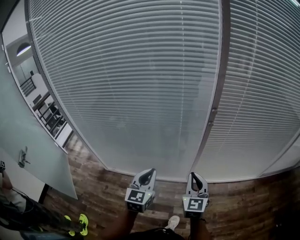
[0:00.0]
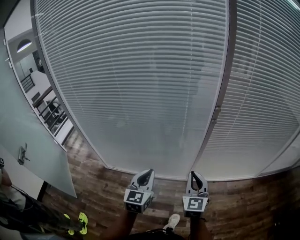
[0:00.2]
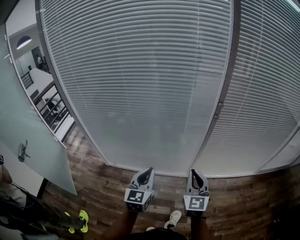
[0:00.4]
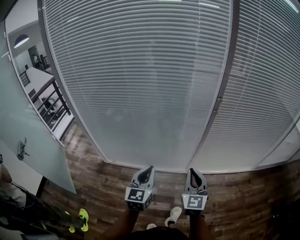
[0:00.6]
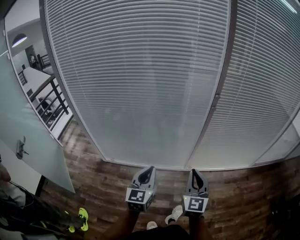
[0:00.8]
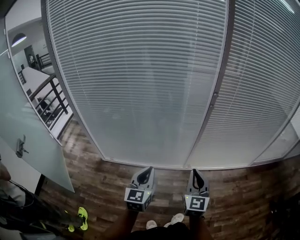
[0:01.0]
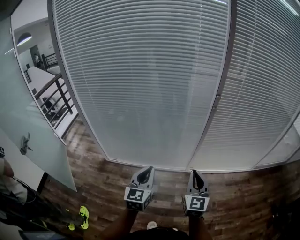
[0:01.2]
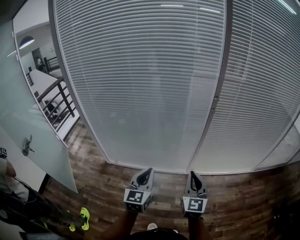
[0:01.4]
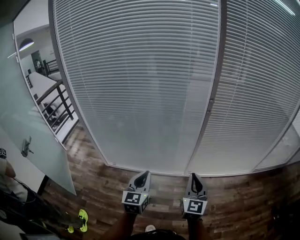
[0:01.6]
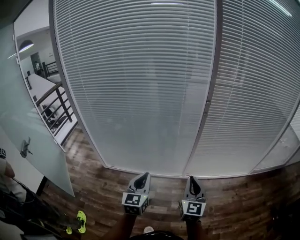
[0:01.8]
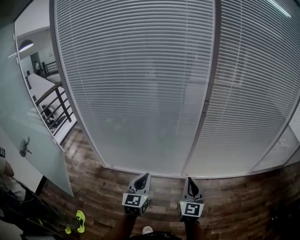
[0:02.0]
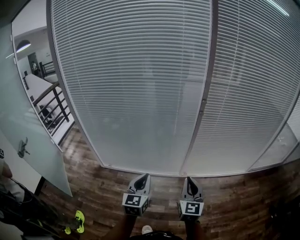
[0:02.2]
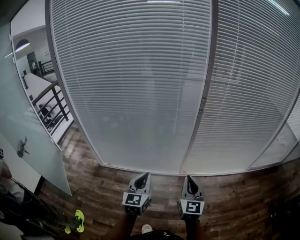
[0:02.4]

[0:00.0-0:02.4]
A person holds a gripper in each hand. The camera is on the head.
0:00.0 to 0:01.2: The left gripper travels backward and to the left by roughly 15 cm. Meanwhile the right gripper goes about 15 cm backward.
0:01.2 to 0:02.4: The right gripper changes place by roughly 5 cm. The left gripper changes place by roughly 5 cm.

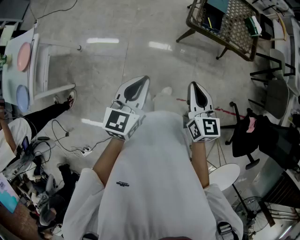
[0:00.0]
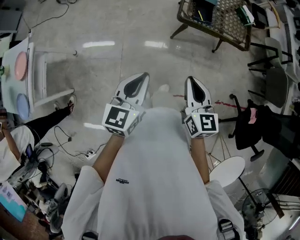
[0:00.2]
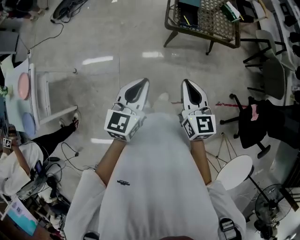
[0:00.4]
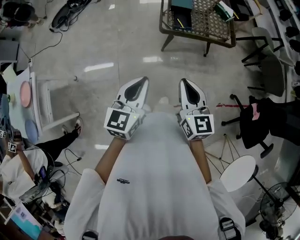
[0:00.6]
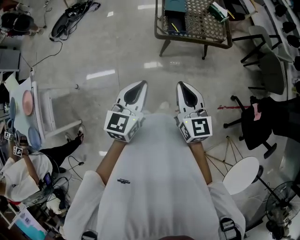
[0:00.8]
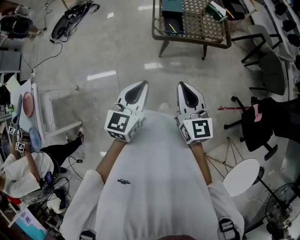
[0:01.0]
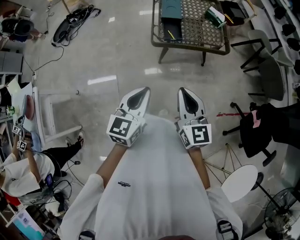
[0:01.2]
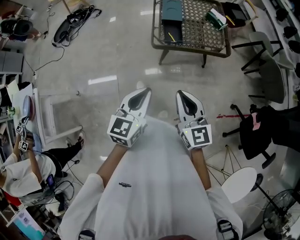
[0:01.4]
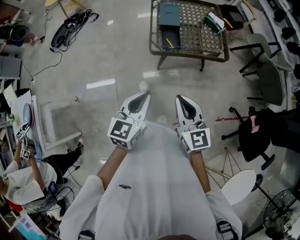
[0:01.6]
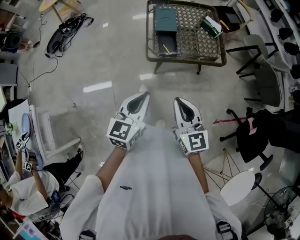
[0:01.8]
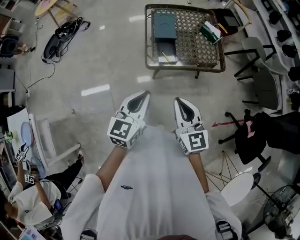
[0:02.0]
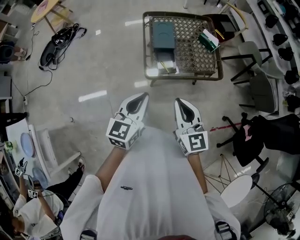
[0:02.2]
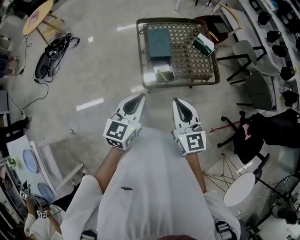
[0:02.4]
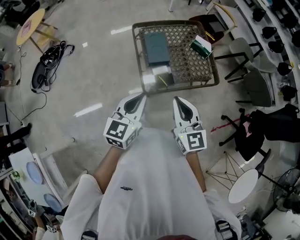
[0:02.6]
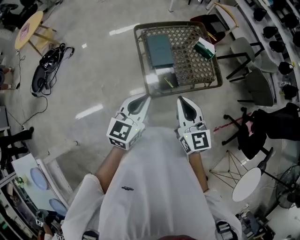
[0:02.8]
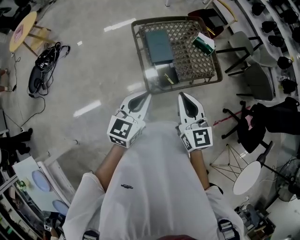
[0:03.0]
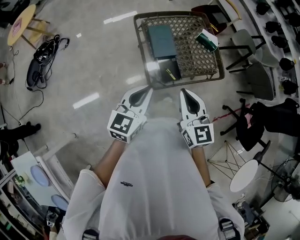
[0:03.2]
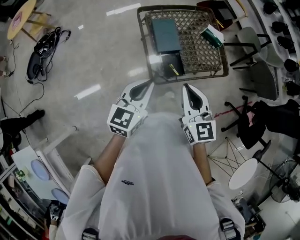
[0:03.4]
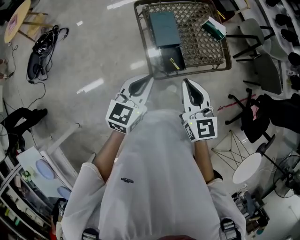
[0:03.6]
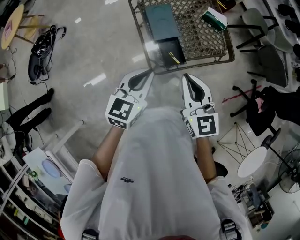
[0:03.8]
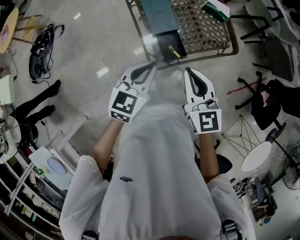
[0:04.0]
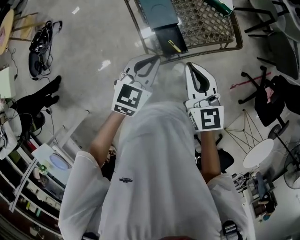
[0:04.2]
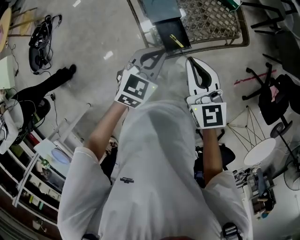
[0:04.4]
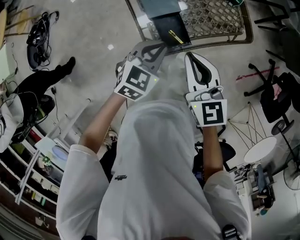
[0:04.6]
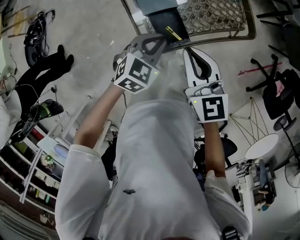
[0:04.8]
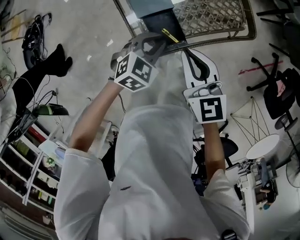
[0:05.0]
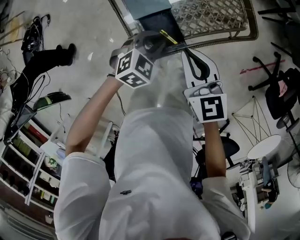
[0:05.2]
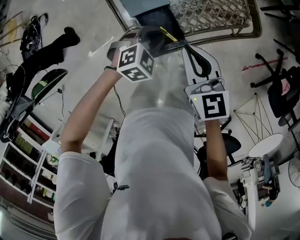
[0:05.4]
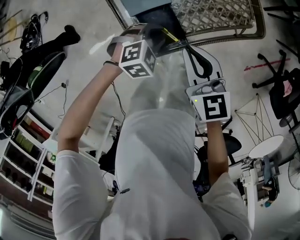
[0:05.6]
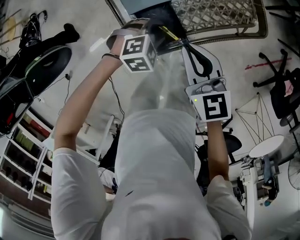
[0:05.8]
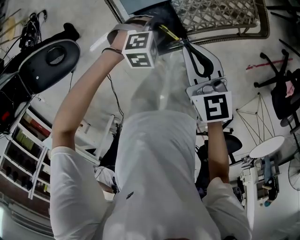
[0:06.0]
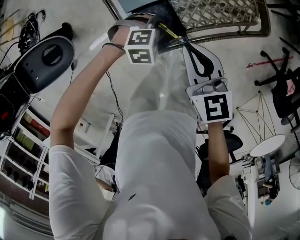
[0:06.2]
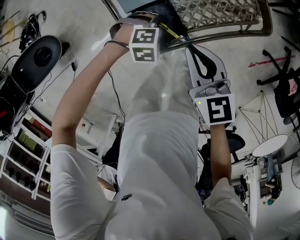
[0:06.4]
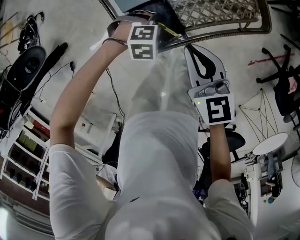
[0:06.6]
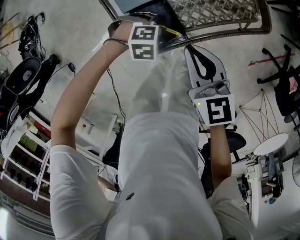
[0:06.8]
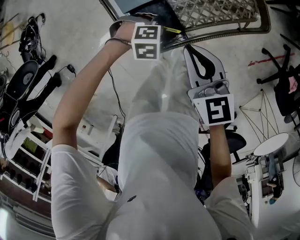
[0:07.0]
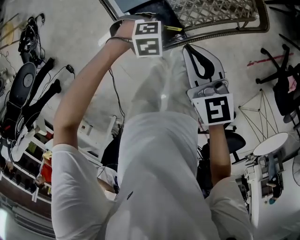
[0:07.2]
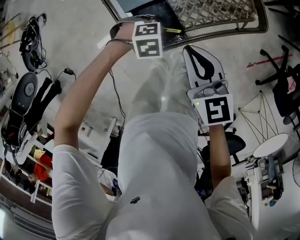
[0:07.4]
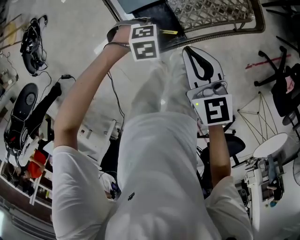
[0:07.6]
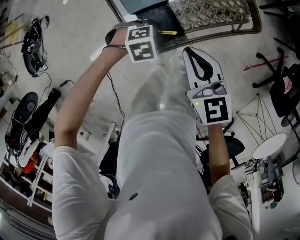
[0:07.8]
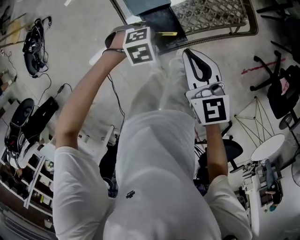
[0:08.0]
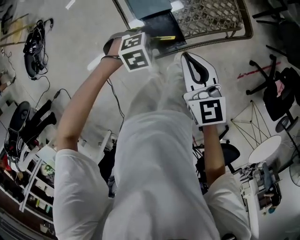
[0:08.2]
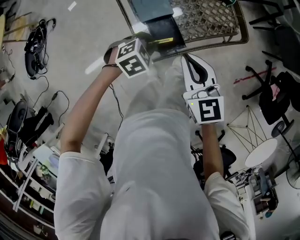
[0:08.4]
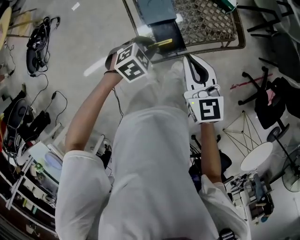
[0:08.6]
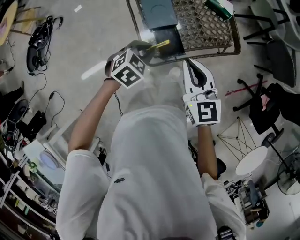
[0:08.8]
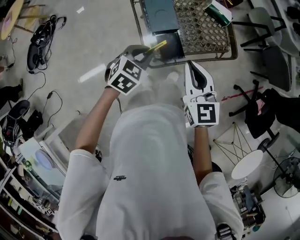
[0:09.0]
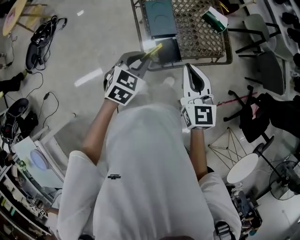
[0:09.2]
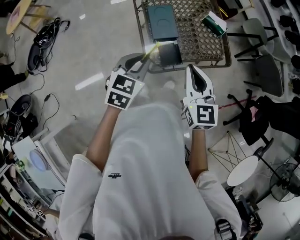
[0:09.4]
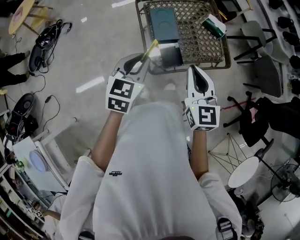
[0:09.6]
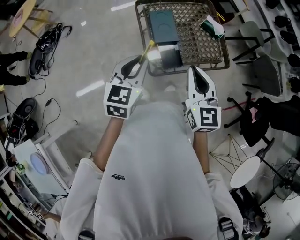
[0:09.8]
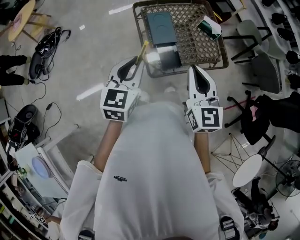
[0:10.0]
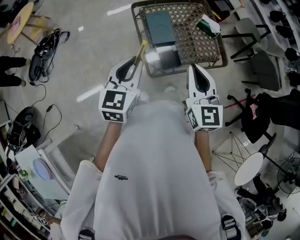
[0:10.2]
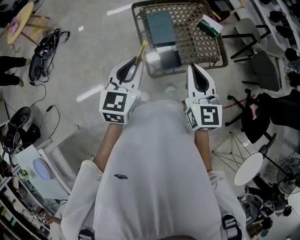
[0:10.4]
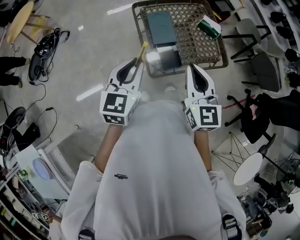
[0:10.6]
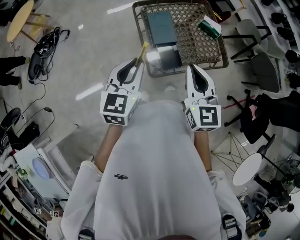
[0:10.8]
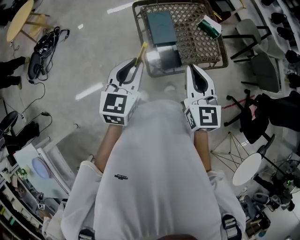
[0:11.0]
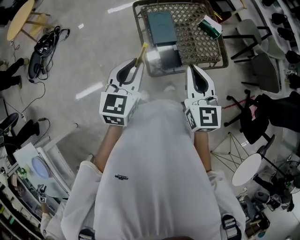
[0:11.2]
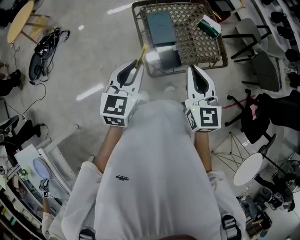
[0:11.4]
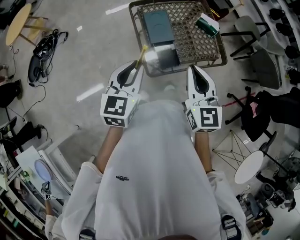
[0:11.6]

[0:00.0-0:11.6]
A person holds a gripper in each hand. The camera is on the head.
0:00.0 to 0:01.4: The left gripper travels to the right and forward by approximately 20 cm; the right gripper travels to the right, forward and upward by roughly 15 cm.
0:01.4 to 0:02.8: The grippers both shift forward by about 30 cm.
0:02.8 to 0:04.4: The left gripper travels downward, forward and to the right by roughly 20 cm, and rotates approximately 30 degrees, while the right gripper heads forward and downward, covering approximately 15 cm.
0:04.4 to 0:05.8: The right gripper shifts about 15 cm downward. The left gripper heads downward, covering about 25 cm, swivels some 50 degrees, and opens its fingers.
0:05.8 to 0:07.2: The left gripper goes roughly 5 cm downward, and closes up.
0:07.2 to 0:08.8: The two grippers go roughly 20 cm upward. The left gripper turns by about 50 degrees.
0:08.8 to 0:10.2: The right gripper is displaced upward by approximately 10 cm, while the left gripper is displaced upward by about 20 cm, and tilts its fingers about 30 degrees upward.
0:10.2 to 0:11.6: Neither gripper changes place.

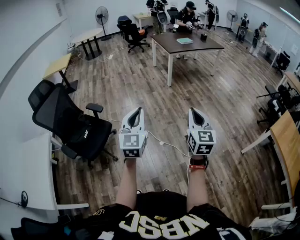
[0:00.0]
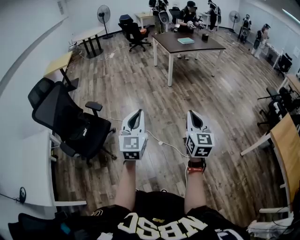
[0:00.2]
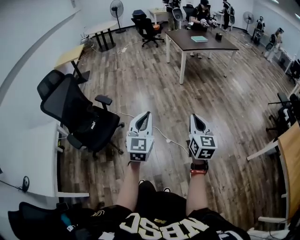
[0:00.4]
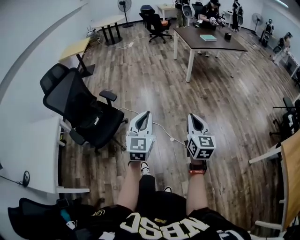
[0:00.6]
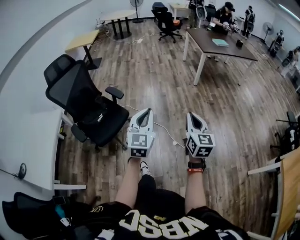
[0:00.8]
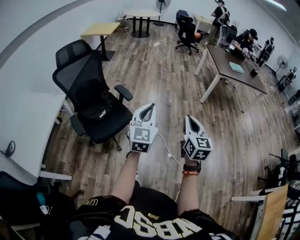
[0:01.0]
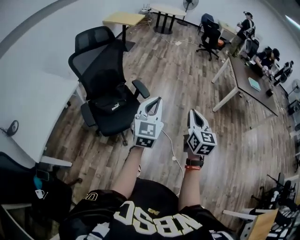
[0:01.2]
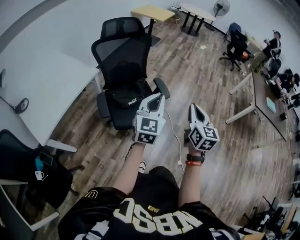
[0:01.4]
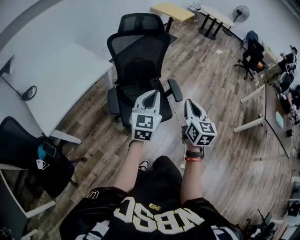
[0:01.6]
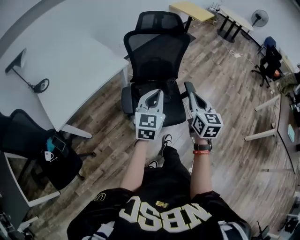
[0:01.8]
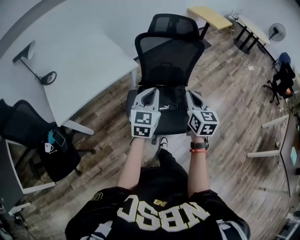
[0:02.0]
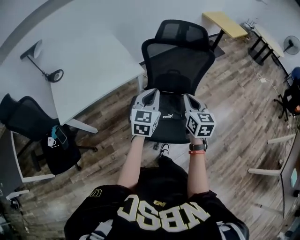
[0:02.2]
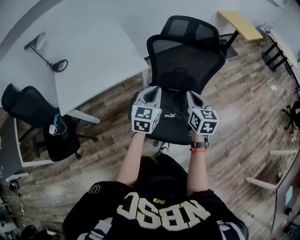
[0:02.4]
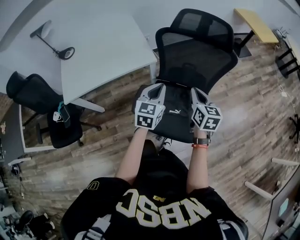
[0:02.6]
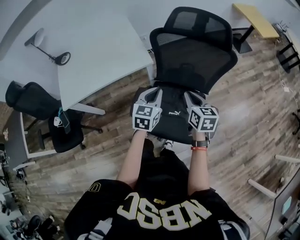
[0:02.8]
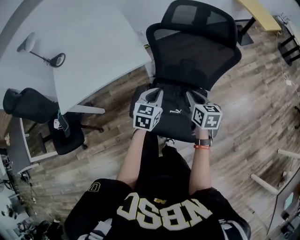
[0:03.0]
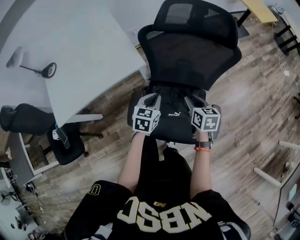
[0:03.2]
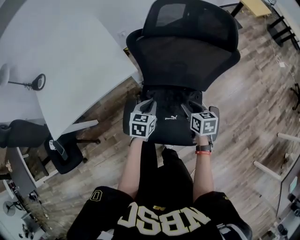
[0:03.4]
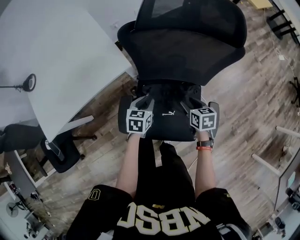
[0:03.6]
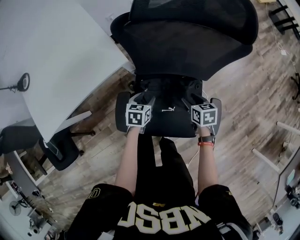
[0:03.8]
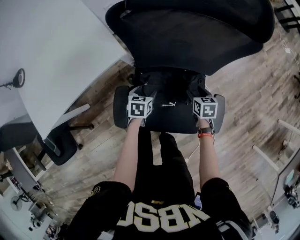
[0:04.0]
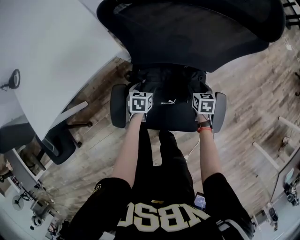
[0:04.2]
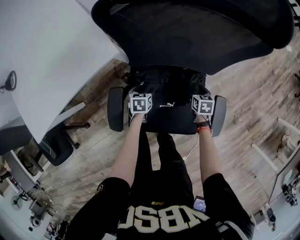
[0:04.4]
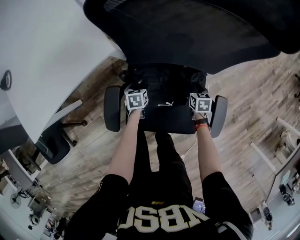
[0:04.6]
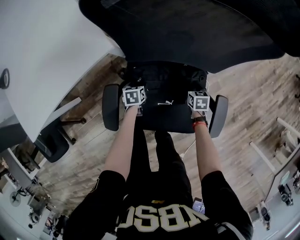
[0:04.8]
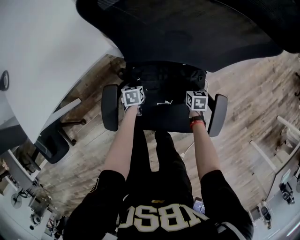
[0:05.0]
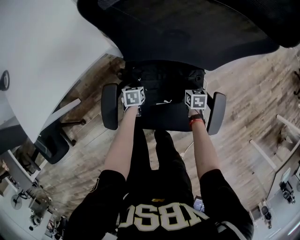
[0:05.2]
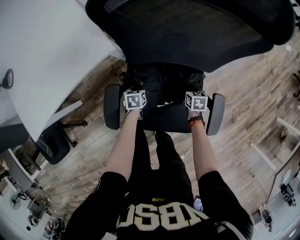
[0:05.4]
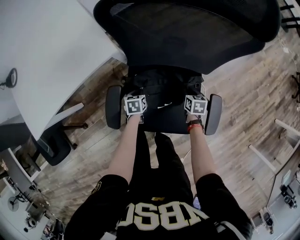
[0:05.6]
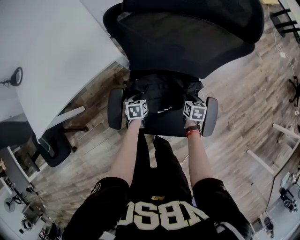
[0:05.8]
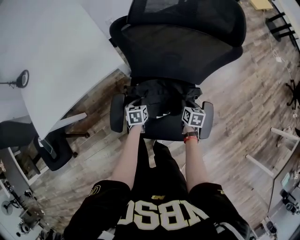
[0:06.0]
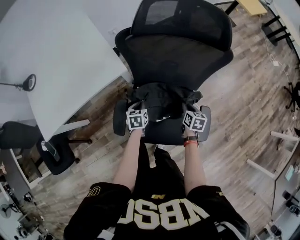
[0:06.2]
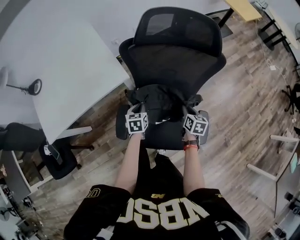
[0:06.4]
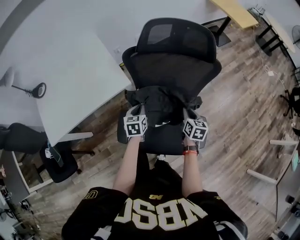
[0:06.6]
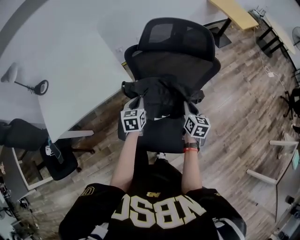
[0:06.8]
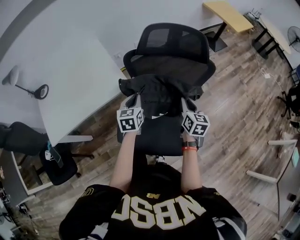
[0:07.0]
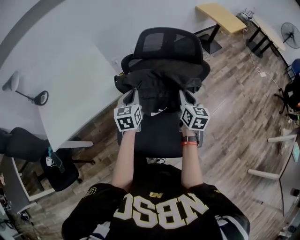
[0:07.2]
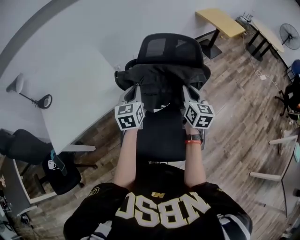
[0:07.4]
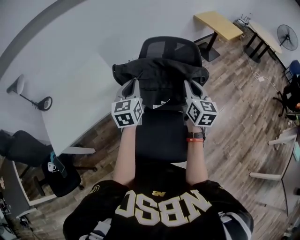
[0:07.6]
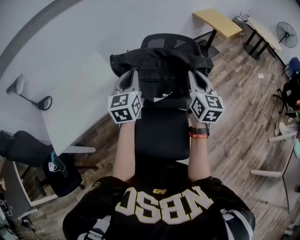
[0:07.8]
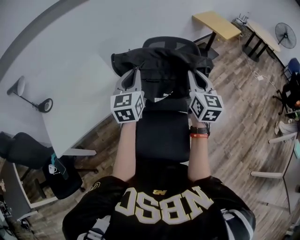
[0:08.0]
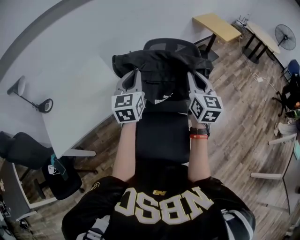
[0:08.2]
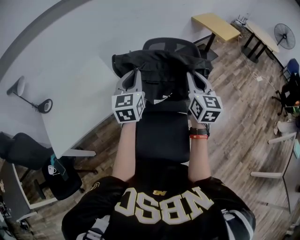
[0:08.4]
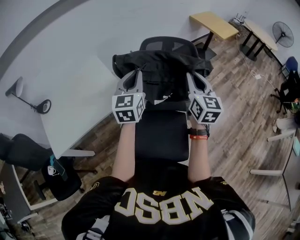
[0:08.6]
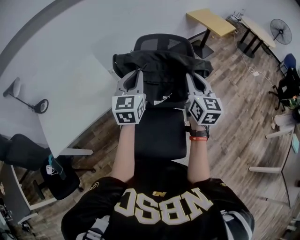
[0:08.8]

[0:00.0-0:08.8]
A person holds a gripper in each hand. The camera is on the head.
0:00.0 to 0:01.4: The two grippers travel together, some 50 cm. The left gripper changes its angle by some 30 degrees. Meanwhile the right gripper changes its angle by some 40 degrees.
0:01.4 to 0:03.0: The pair of grippers is taken roughly 40 cm. The right gripper turns by approximately 50 degrees. Meanwhile the left gripper turns by roughly 50 degrees.
0:03.0 to 0:04.4: Both grippers travel together downward, about 35 cm. The right gripper swivels some 30 degrees, and opens up, while the left gripper angles its fingers downward, by approximately 30 degrees, and opens up.
0:04.4 to 0:05.8: The right gripper ends up approximately 5 cm from where it was, and closes up. The left gripper closes its fingers.
0:05.8 to 0:07.4: Both grippers travel together upward, about 50 cm. The left gripper angles its fingers upward, by roughly 40 degrees; the right gripper angles its fingers upward, by about 40 degrees.
0:07.4 to 0:08.8: Both grippers travel together upward, about 10 cm.
